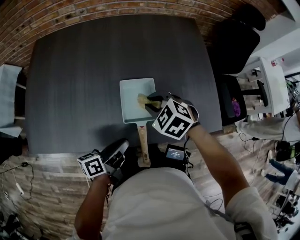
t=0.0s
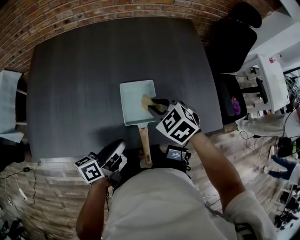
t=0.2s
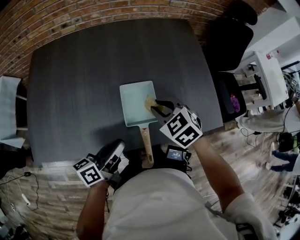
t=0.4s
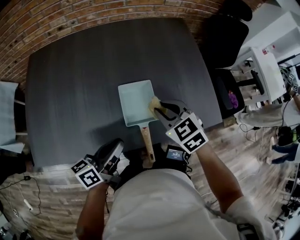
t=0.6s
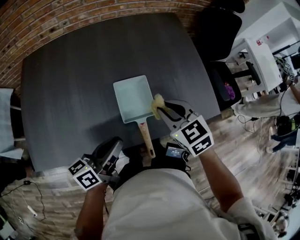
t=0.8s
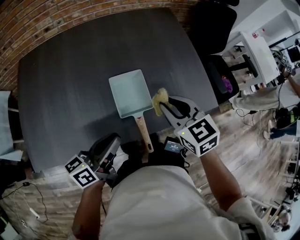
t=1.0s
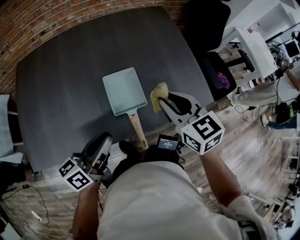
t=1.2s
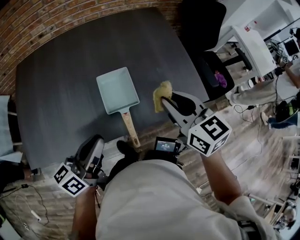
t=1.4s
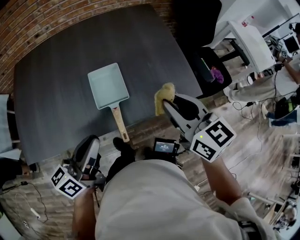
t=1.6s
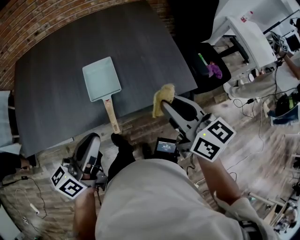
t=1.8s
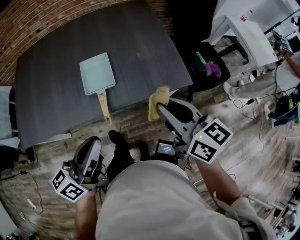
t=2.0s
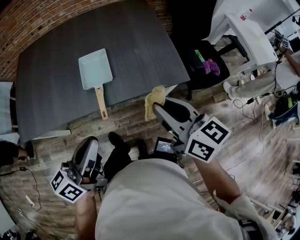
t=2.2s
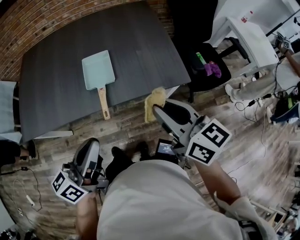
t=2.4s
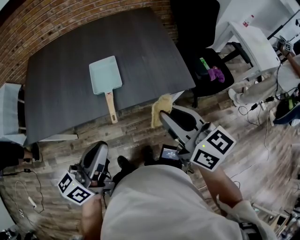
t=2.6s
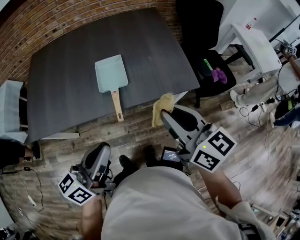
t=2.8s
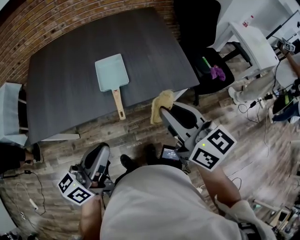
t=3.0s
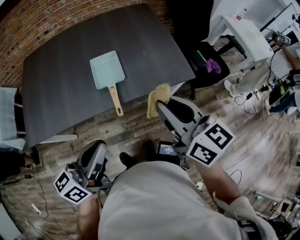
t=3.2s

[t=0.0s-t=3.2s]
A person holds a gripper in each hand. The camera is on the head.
t=0.0s to t=1.6s: The right gripper shifts by approximately 25 cm, and tilts its fingers approximately 40 degrees upward.
t=1.6s to t=3.2s: The right gripper shifts by about 15 cm.

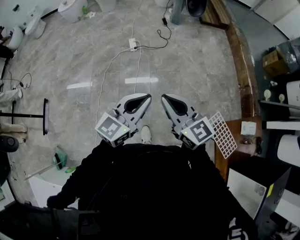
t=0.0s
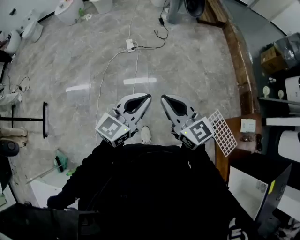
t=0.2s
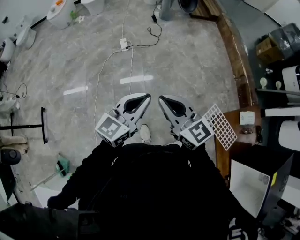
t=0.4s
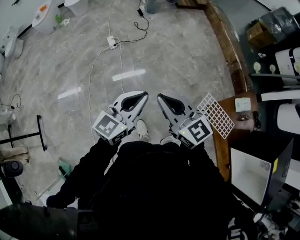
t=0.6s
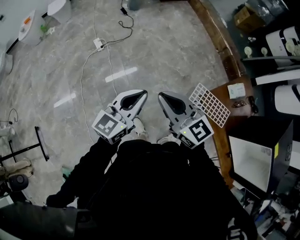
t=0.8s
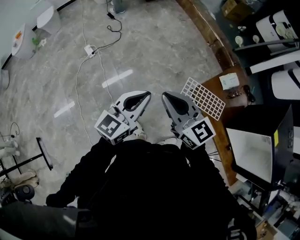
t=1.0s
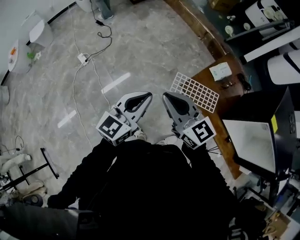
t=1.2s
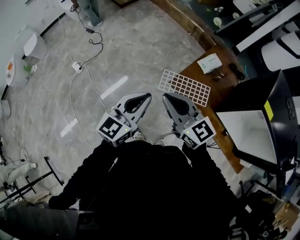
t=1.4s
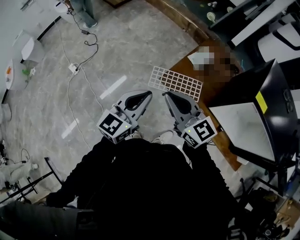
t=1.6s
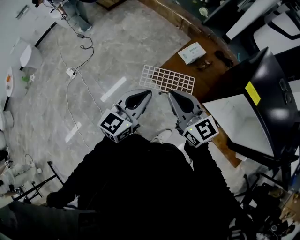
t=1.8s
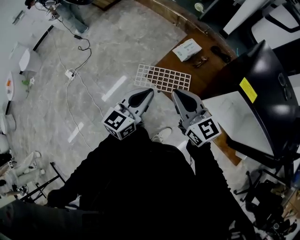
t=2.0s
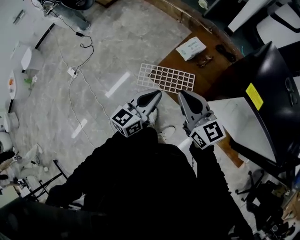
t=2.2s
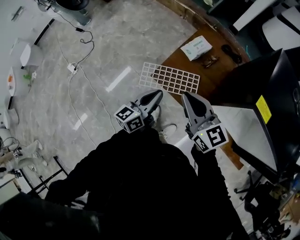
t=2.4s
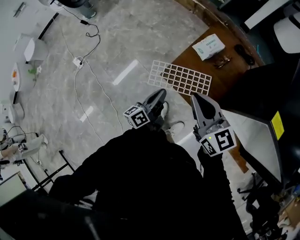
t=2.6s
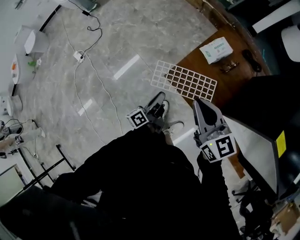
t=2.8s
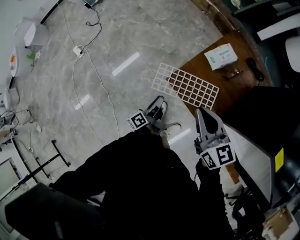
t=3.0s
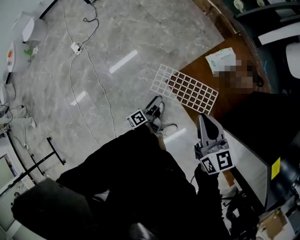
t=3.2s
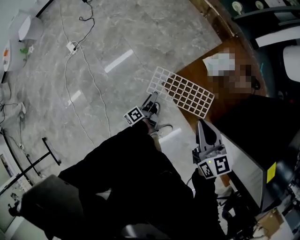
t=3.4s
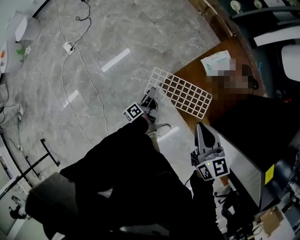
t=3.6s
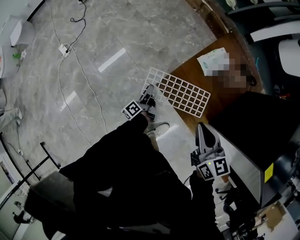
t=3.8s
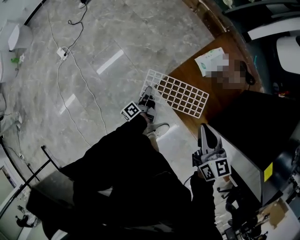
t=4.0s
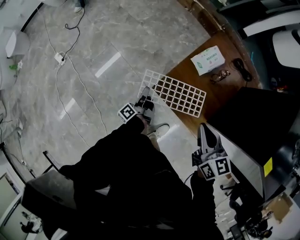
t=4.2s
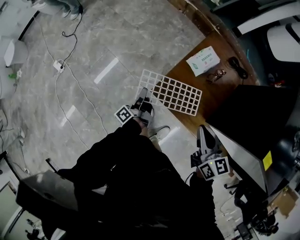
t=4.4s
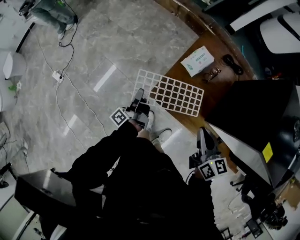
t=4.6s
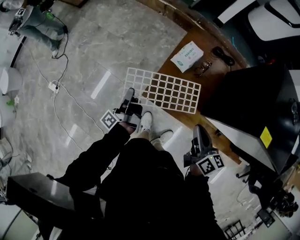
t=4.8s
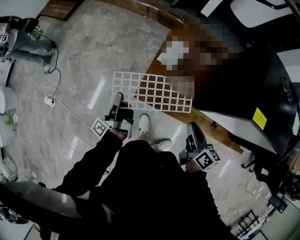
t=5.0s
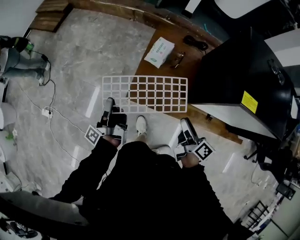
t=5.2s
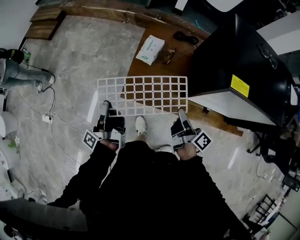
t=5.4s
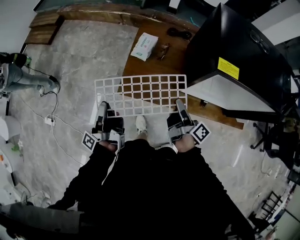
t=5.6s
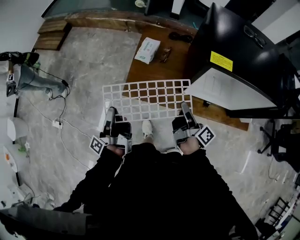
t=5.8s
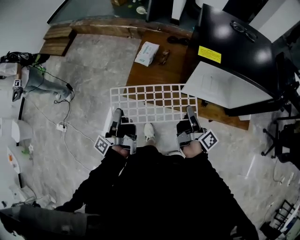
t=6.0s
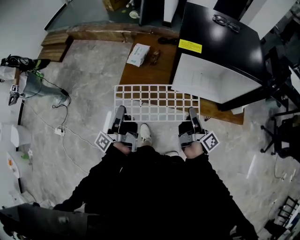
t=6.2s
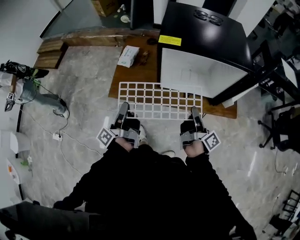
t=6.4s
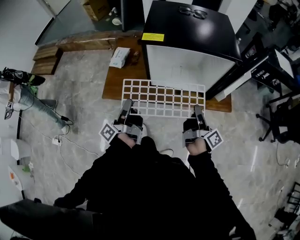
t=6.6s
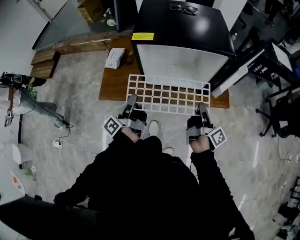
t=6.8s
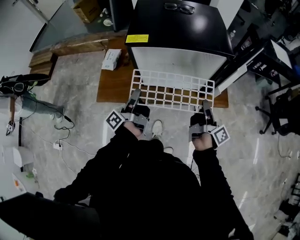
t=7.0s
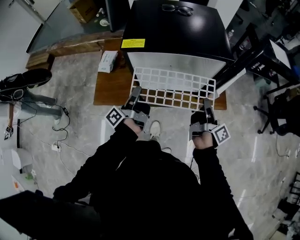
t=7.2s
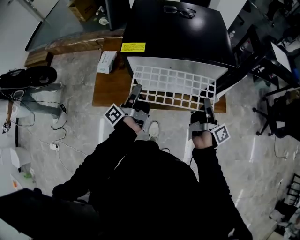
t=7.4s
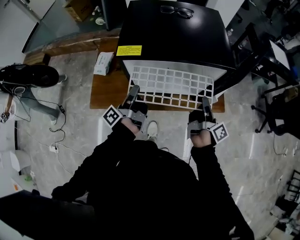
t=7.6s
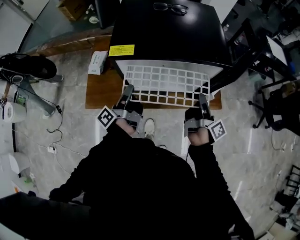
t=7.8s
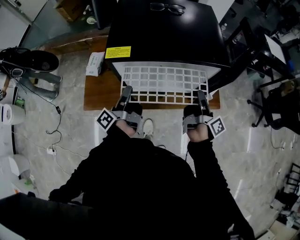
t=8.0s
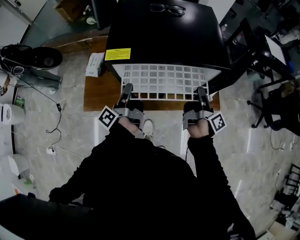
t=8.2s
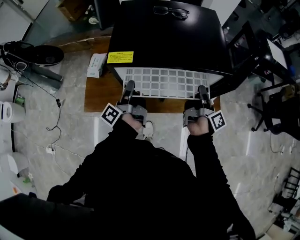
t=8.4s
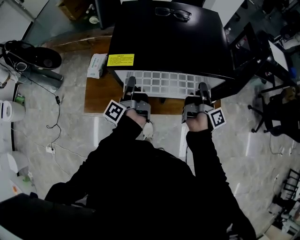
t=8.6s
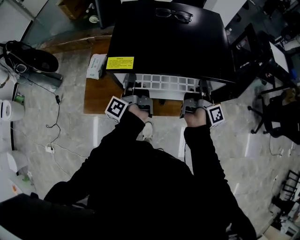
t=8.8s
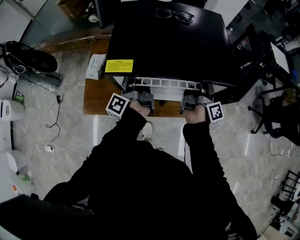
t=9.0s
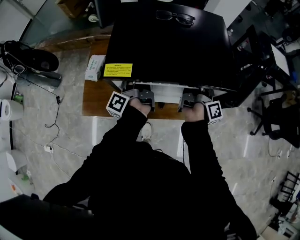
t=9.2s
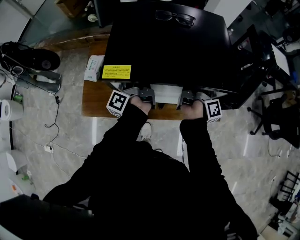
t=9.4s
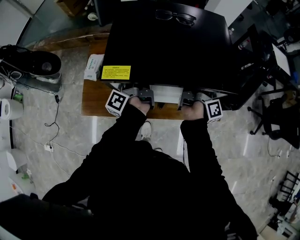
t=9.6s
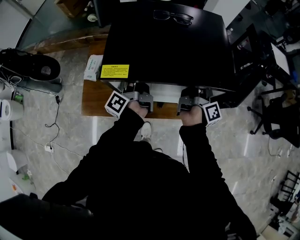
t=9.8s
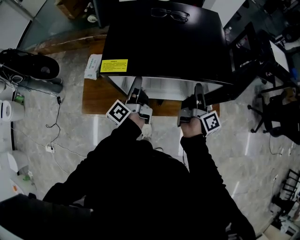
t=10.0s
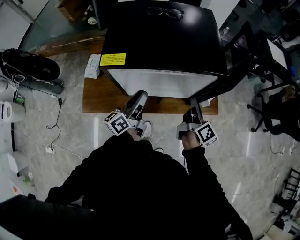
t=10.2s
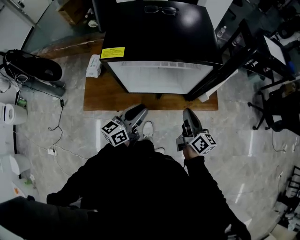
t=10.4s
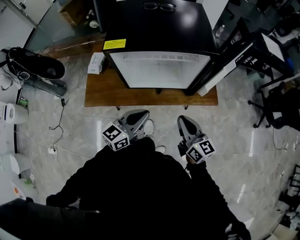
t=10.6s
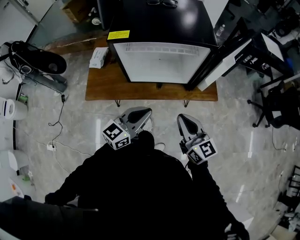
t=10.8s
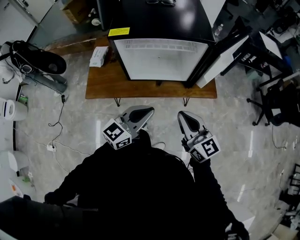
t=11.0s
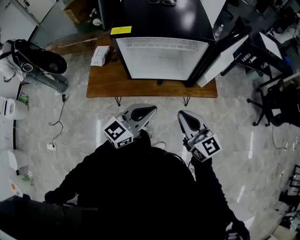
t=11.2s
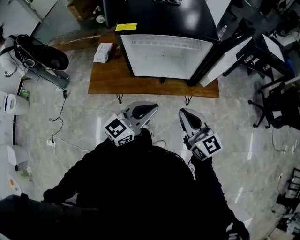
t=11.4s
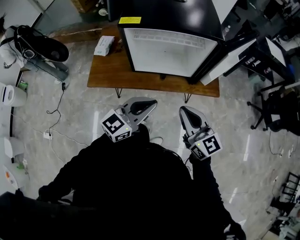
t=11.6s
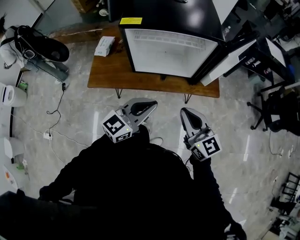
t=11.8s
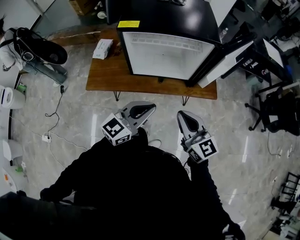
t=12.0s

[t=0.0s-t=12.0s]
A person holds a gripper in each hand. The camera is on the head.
t=0.0s to t=1.6s: The two grippers travel together, about 40 cm. The right gripper changes its angle by approximately 40 degrees, while the left gripper changes its angle by some 40 degrees.
t=1.6s to t=3.0s: The left gripper goes about 35 cm downward, rolls counterclockwise, seen from behind, by approximately 70 degrees, and opens its fingers, while the right gripper is displaced downward, to the right and forward by some 20 cm.
t=3.0s to t=4.4s: The right gripper is displaced to the right by approximately 5 cm, while the left gripper moves forward, some 10 cm, and closes up.
t=4.4s to t=6.0s: The left gripper shifts some 30 cm upward, backward and to the right. Meanwhile the right gripper is displaced backward and to the right by some 25 cm, rolls clockwise, seen from behind, by about 60 degrees, and opens and closes again.
t=6.0s to t=7.6s: The left gripper moves to the right and forward, approximately 35 cm, and changes its angle by about 30 degrees, while the right gripper is displaced to the right by roughly 30 cm, and changes its angle by about 20 degrees.
t=7.6s to t=9.0s: The two grippers go roughly 10 cm forward.
t=9.0s to t=10.4s: The left gripper shifts approximately 25 cm backward and to the right, and turns by roughly 70 degrees, while the right gripper goes some 20 cm backward, and rolls counterclockwise, seen from behind, by roughly 40 degrees.
t=10.4s to t=12.0s: The grippers both shift backward and upward by about 20 cm. The left gripper turns by some 30 degrees, and closes its fingers. The right gripper changes its angle by roughly 40 degrees.

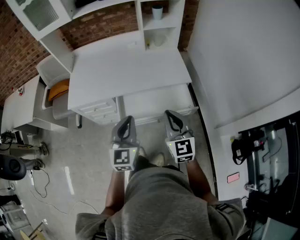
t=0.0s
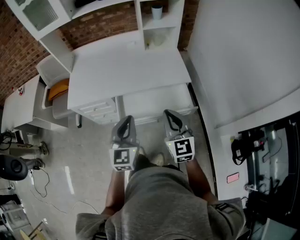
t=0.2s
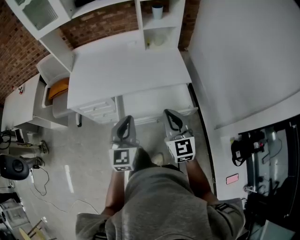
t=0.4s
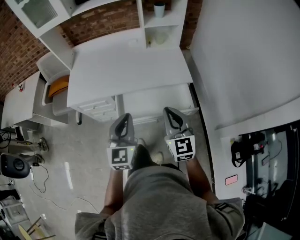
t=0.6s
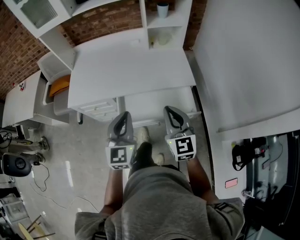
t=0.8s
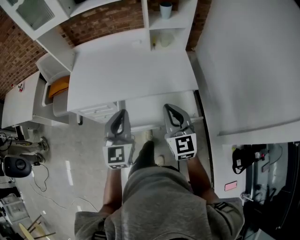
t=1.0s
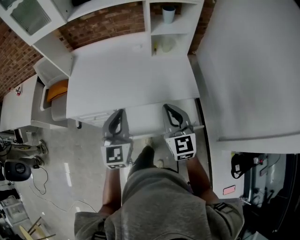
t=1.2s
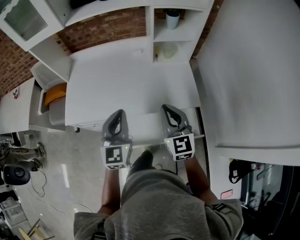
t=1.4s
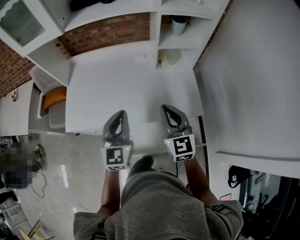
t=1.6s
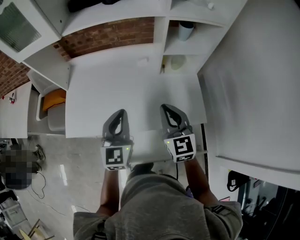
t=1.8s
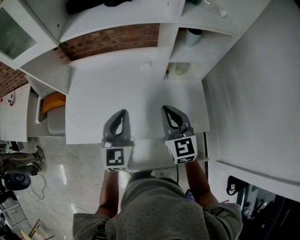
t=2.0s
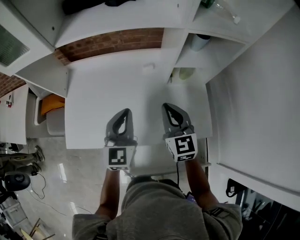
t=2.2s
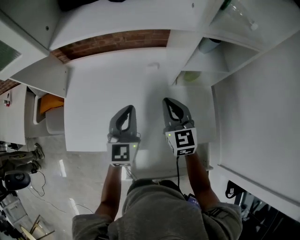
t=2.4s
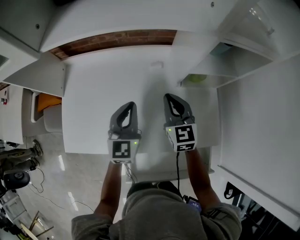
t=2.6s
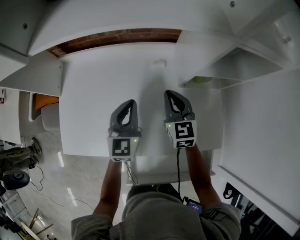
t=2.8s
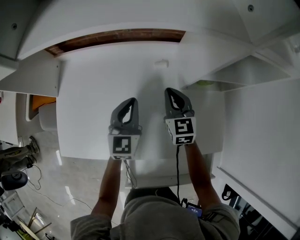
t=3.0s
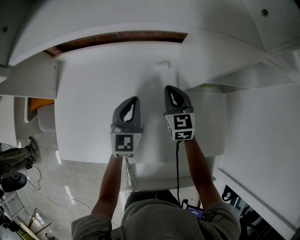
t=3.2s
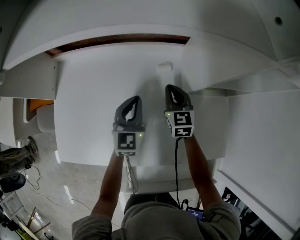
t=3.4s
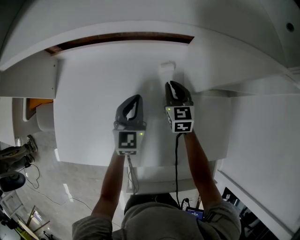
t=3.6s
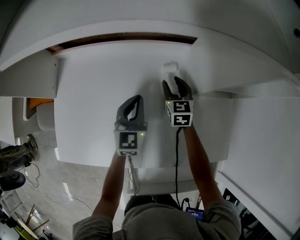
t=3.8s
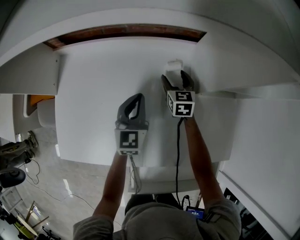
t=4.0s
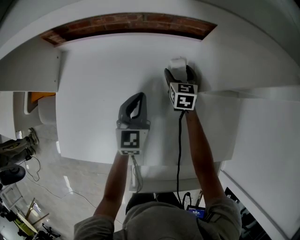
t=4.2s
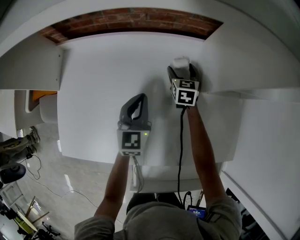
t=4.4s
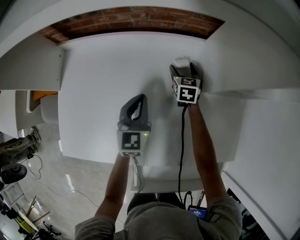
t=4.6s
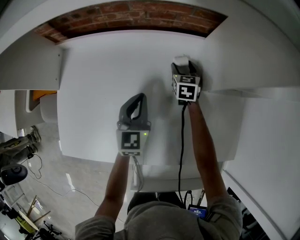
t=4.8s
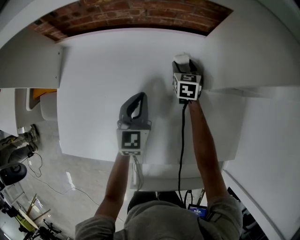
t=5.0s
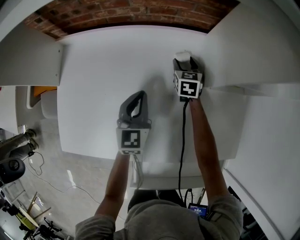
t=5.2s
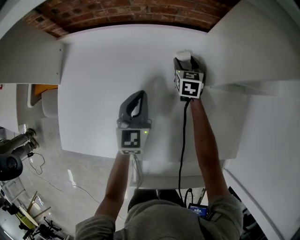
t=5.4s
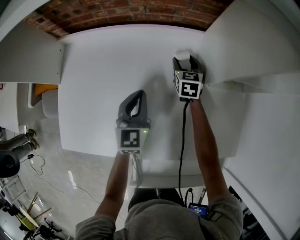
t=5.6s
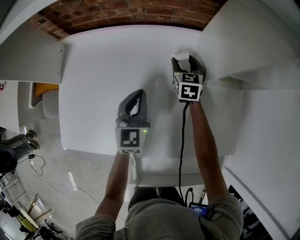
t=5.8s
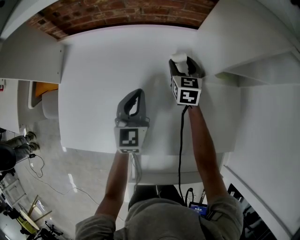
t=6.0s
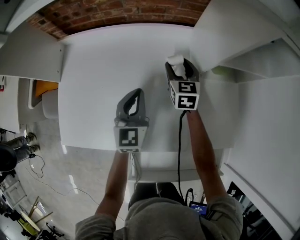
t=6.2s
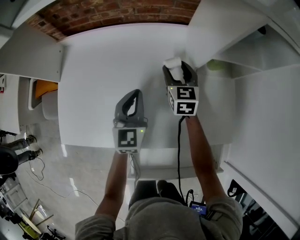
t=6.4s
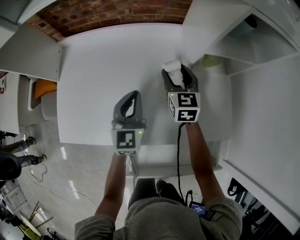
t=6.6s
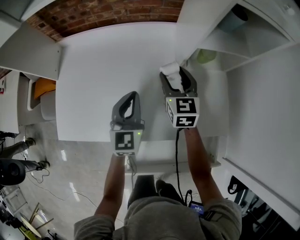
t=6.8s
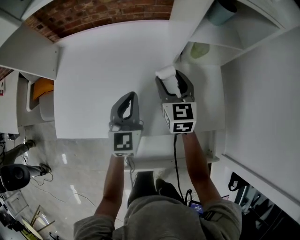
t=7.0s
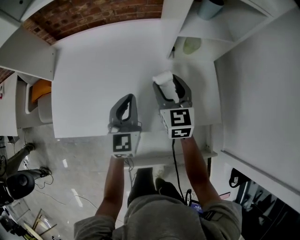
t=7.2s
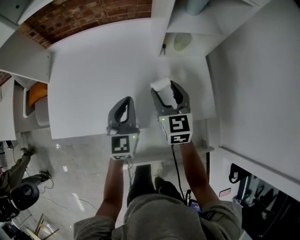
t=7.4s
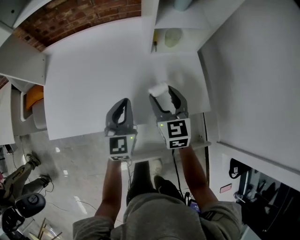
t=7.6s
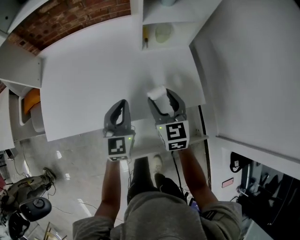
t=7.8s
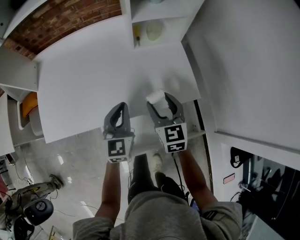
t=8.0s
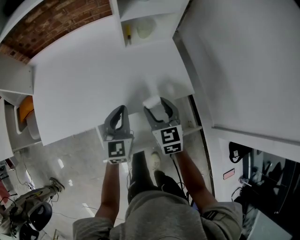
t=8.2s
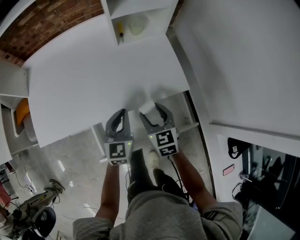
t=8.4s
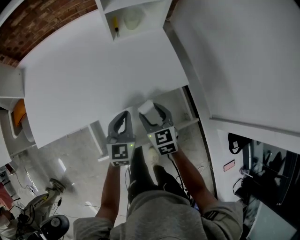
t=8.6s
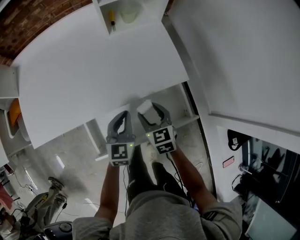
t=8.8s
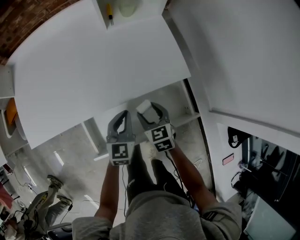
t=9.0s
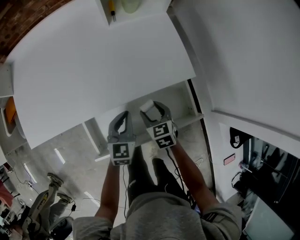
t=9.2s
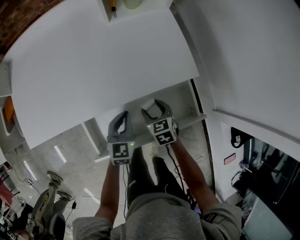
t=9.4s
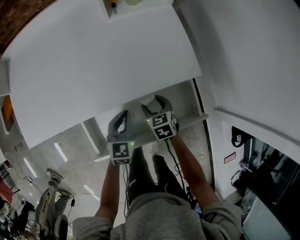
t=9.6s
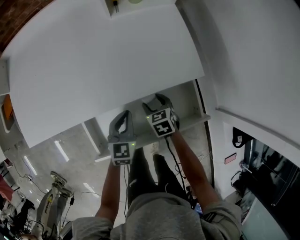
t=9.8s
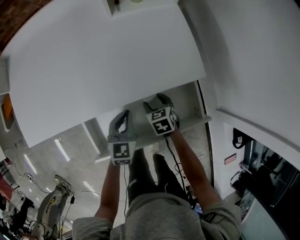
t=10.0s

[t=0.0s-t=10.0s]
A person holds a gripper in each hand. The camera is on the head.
t=0.0s to t=1.4s: The two grippers go about 25 cm forward.
t=1.4s to t=2.8s: The grippers both shift forward by some 35 cm.
t=2.8s to t=4.2s: The right gripper is displaced downward and forward by some 25 cm, and opens its fingers. The left gripper shifts roughly 15 cm downward and forward.
t=4.2s to t=5.8s: There are only small adjustments of the grippers.
t=5.8s to t=7.2s: The right gripper is displaced backward and upward by approximately 30 cm; the left gripper moves backward, to the right and upward, about 20 cm.
t=7.2s to t=8.6s: The right gripper moves backward, downward and to the right, roughly 30 cm. The left gripper shifts some 25 cm backward, to the right and downward.
t=8.6s to t=10.0s: The left gripper shifts some 15 cm downward, while the right gripper is displaced downward by approximately 20 cm, and changes its angle by approximately 20 degrees.
